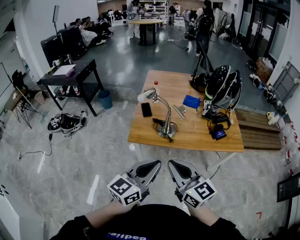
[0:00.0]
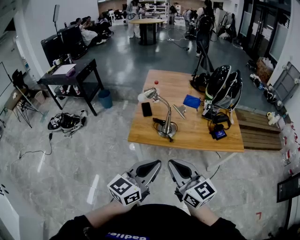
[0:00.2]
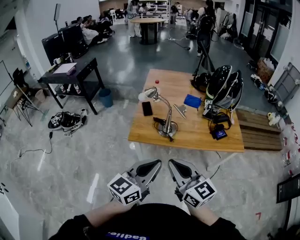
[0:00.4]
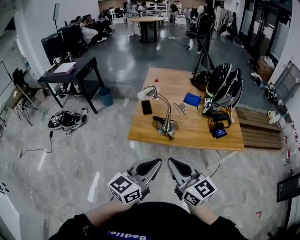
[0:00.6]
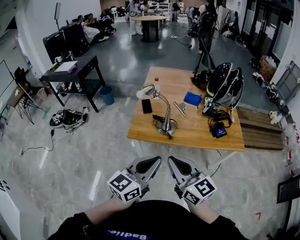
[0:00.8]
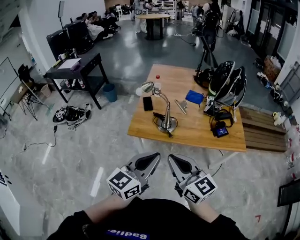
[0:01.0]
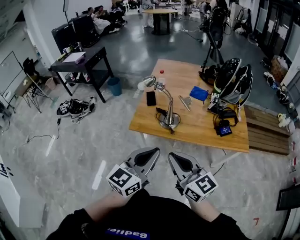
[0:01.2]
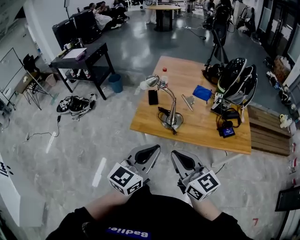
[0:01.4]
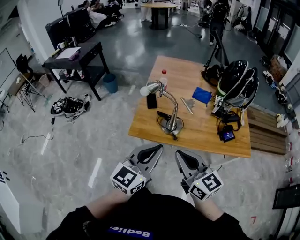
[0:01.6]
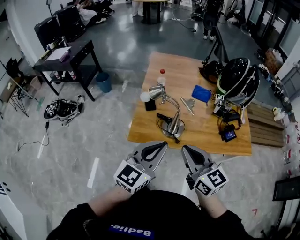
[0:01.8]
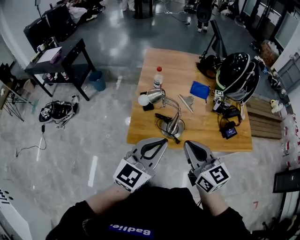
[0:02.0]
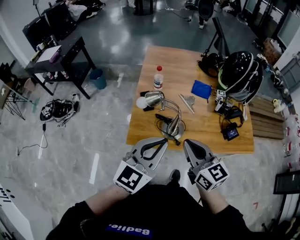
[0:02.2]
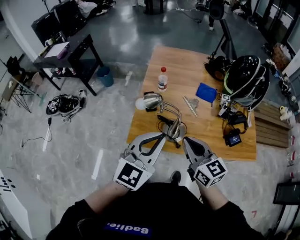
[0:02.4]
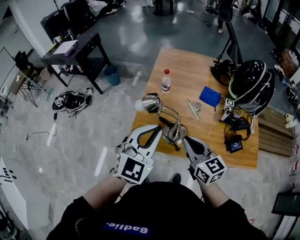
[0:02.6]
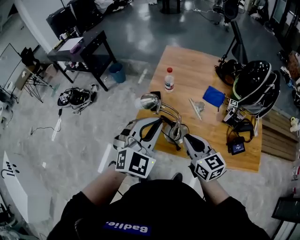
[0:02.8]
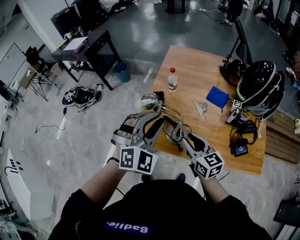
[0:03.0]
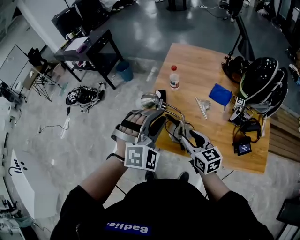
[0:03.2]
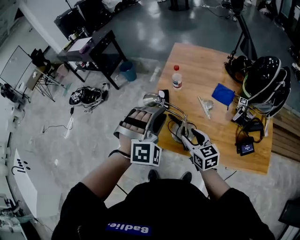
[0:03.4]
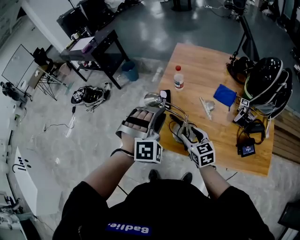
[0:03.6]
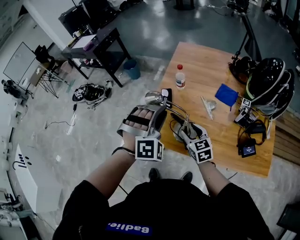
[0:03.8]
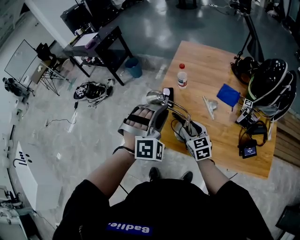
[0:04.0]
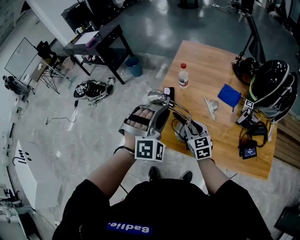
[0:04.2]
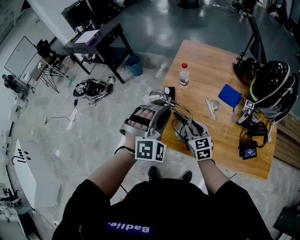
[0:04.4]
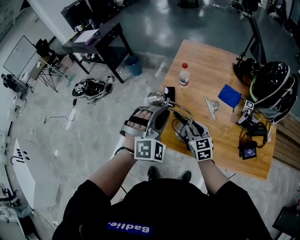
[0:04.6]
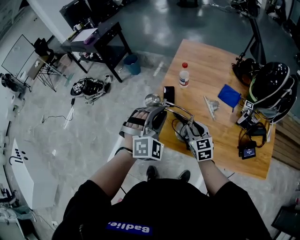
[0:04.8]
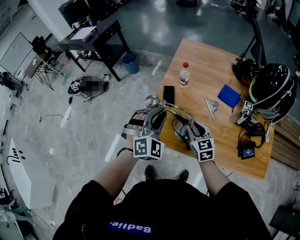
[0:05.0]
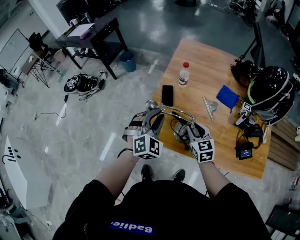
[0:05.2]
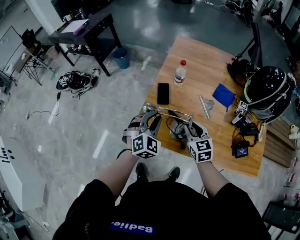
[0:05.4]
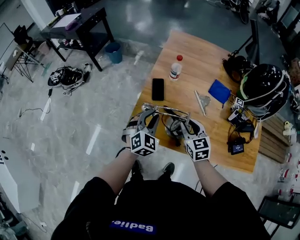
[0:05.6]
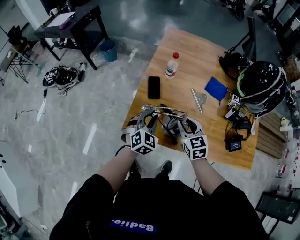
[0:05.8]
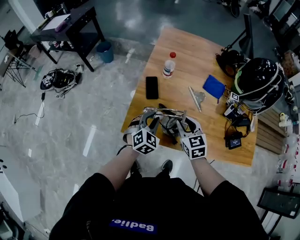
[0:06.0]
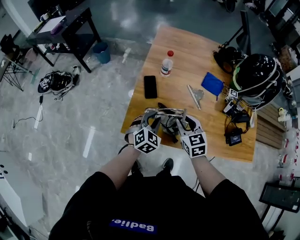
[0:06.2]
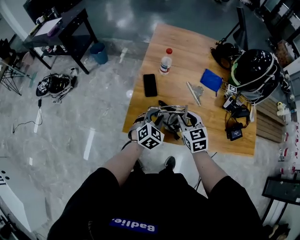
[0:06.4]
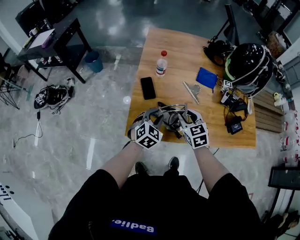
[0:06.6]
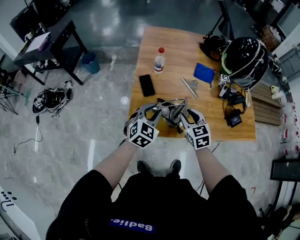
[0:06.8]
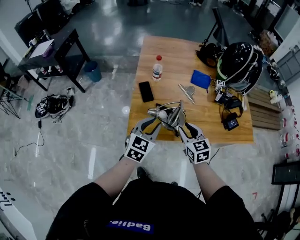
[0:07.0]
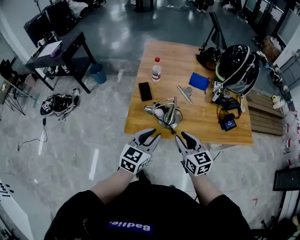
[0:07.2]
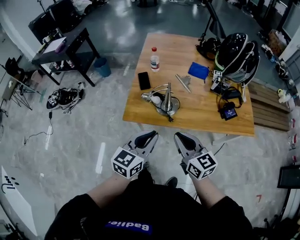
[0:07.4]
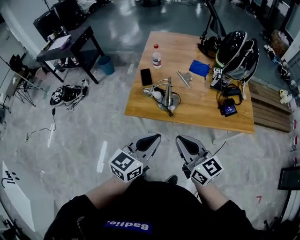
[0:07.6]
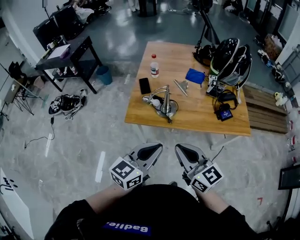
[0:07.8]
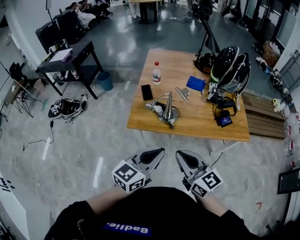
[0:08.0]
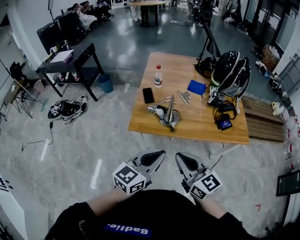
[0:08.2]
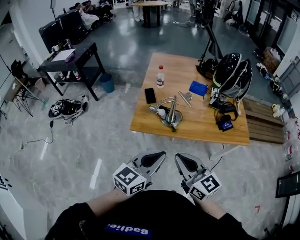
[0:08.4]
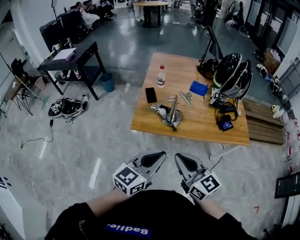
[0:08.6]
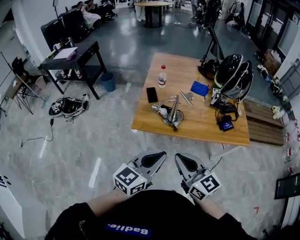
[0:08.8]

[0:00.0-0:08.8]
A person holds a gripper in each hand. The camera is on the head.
0:00.0 to 0:01.4: The right gripper ends up about 5 cm from where it was. Meanwhile the left gripper shifts about 5 cm forward.
0:01.4 to 0:03.0: The left gripper heads forward, covering about 30 cm, rolls clockwise, seen from behind, by approximately 60 degrees, and opens, while the right gripper is displaced forward and downward by some 30 cm, and opens up.
0:03.0 to 0:04.4: The left gripper shifts by about 5 cm; the right gripper goes roughly 15 cm downward and forward.
0:04.4 to 0:05.8: The left gripper is displaced downward by some 20 cm, and twists approximately 40 degrees counterclockwise, seen from behind.
0:05.8 to 0:07.4: The grippers both shift backward and upward by about 30 cm. The left gripper swivels about 40 degrees. Meanwhile the right gripper swivels some 30 degrees, and closes up.
0:07.4 to 0:08.8: Both grippers move backward and upward, some 15 cm.

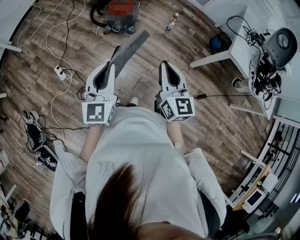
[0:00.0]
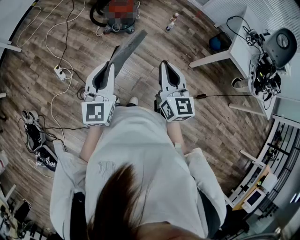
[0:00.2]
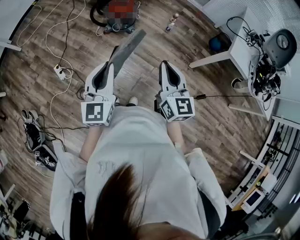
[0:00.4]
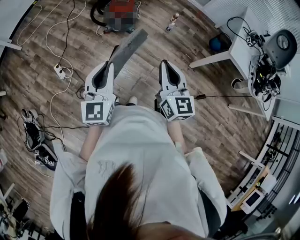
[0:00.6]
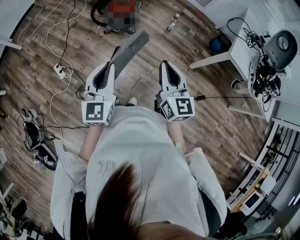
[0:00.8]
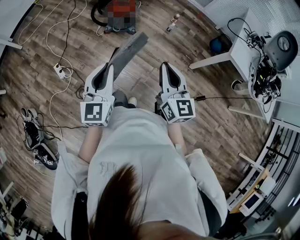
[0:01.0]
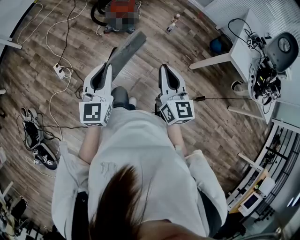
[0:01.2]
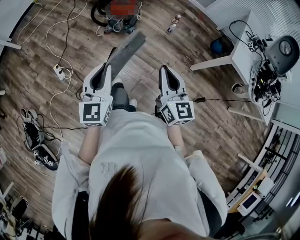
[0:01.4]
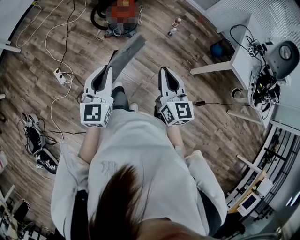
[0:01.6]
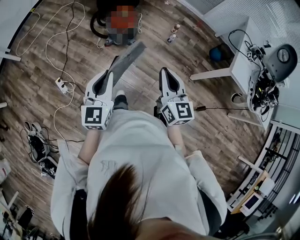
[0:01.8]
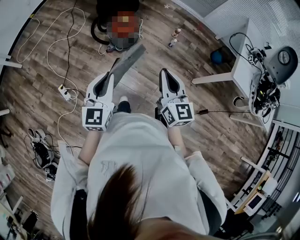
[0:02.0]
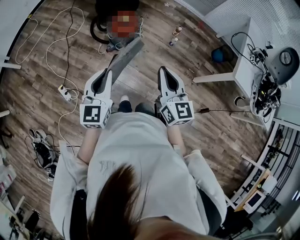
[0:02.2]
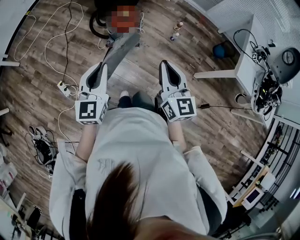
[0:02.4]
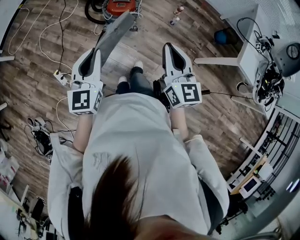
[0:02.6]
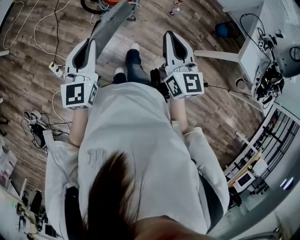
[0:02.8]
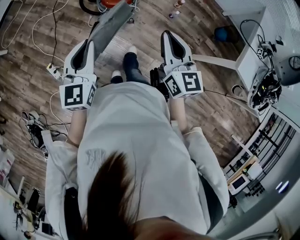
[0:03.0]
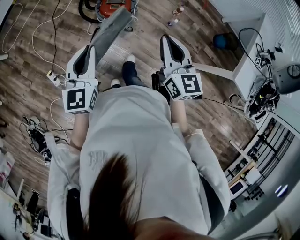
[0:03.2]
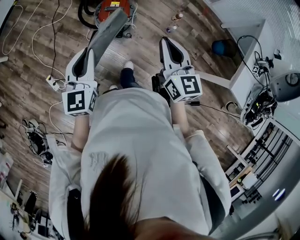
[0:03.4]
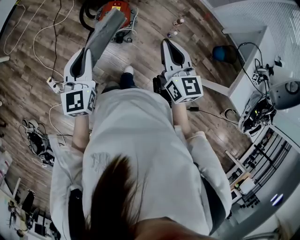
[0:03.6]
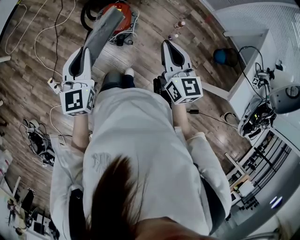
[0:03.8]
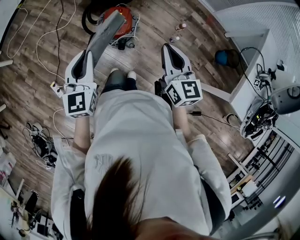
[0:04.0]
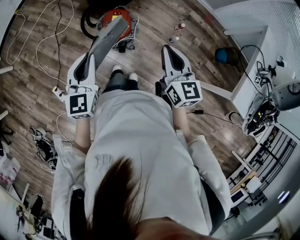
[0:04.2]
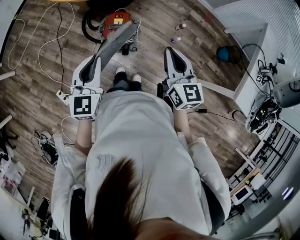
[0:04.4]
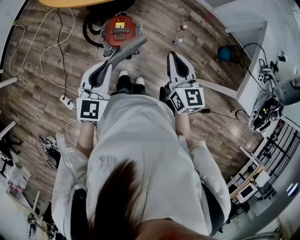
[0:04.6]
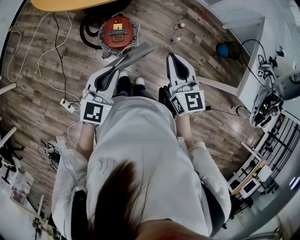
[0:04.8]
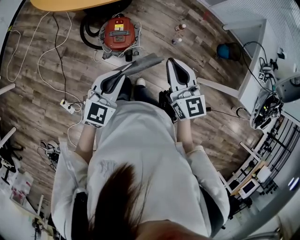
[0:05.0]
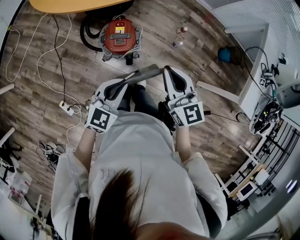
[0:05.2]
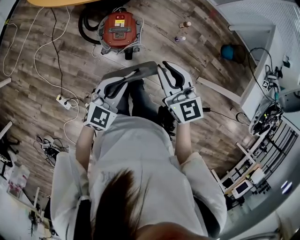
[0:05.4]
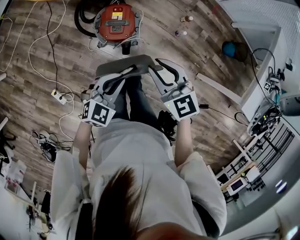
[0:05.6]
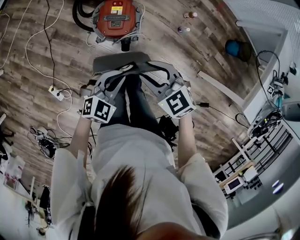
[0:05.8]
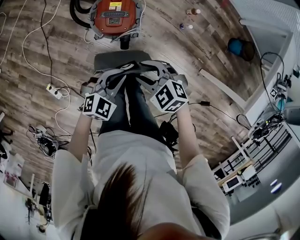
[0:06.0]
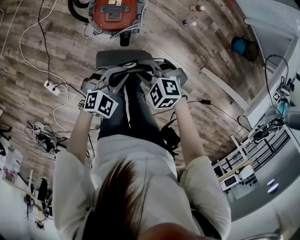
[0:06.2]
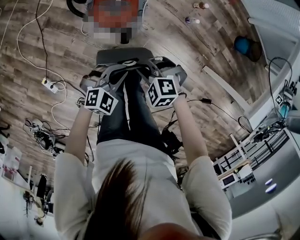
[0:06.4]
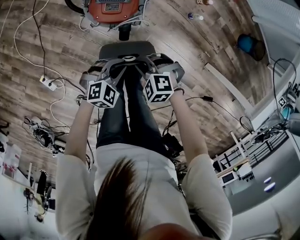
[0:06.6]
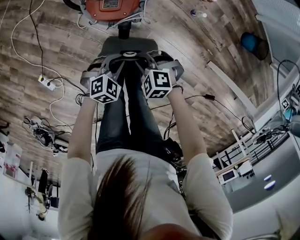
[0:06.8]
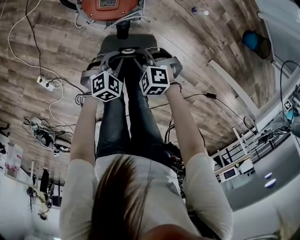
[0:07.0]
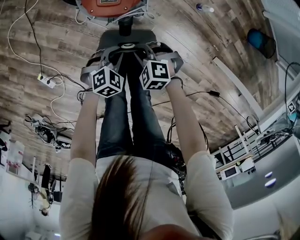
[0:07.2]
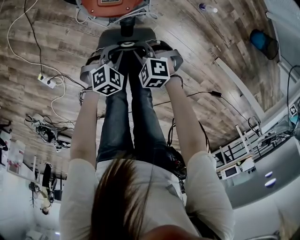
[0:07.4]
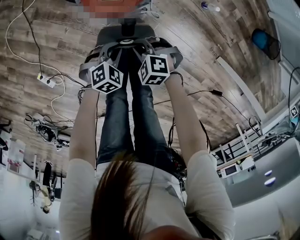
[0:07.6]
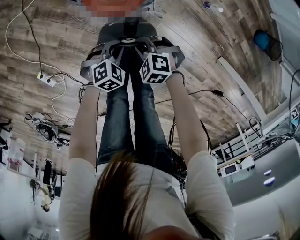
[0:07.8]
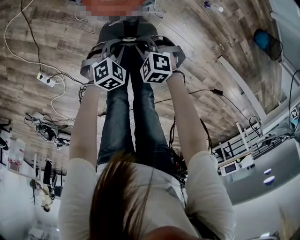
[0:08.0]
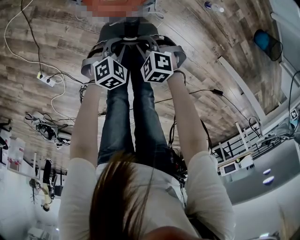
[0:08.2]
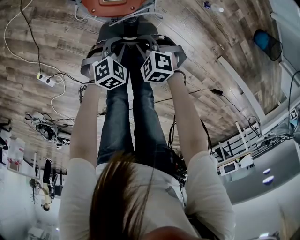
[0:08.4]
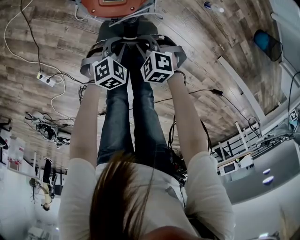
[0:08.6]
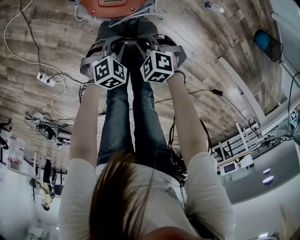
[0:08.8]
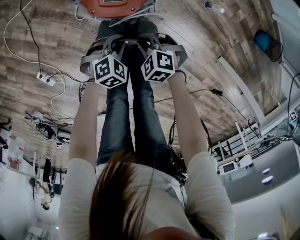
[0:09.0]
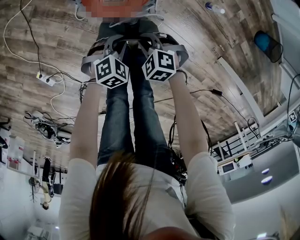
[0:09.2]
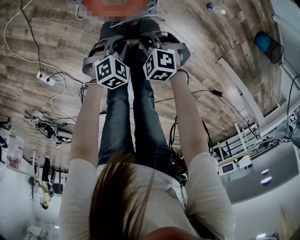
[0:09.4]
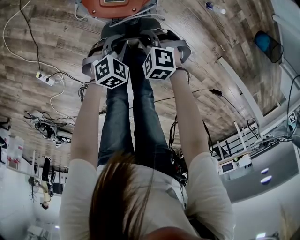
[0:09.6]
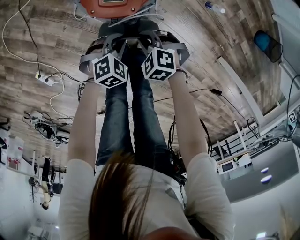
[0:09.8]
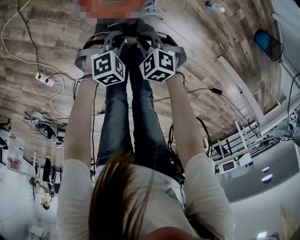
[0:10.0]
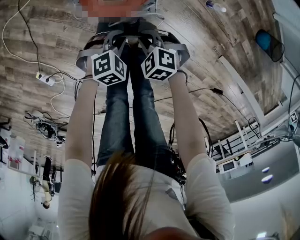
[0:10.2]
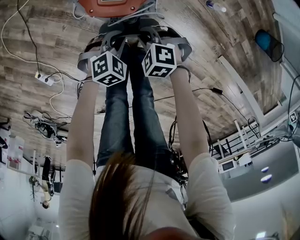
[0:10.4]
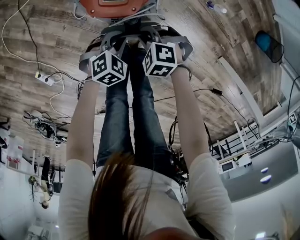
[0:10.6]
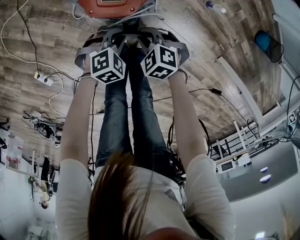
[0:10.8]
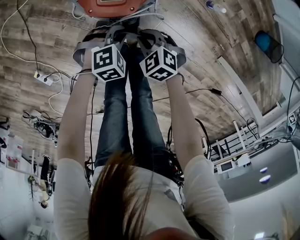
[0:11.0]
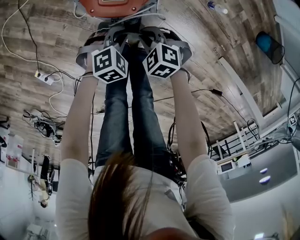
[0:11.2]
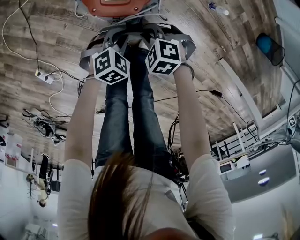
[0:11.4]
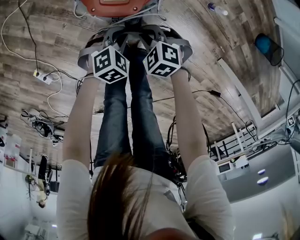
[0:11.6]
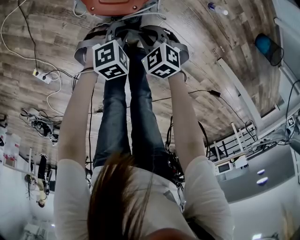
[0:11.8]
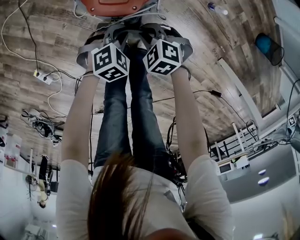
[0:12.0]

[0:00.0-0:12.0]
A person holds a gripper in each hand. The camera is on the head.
0:00.0 to 0:01.6: The two grippers go approximately 5 cm forward.
0:01.6 to 0:03.0: Both grippers move forward, about 25 cm.
0:03.0 to 0:04.4: The two grippers go approximately 20 cm forward.
0:04.4 to 0:06.0: Both grippers travel together downward, roughly 25 cm. The right gripper points its fingers some 40 degrees further downward, and opens its fingers; the left gripper swivels about 50 degrees.
0:06.0 to 0:07.6: The grippers both shift downward by about 30 cm. The left gripper swivels about 30 degrees. The right gripper closes up.
0:07.6 to 0:10.4: The grippers stay close to where they were, moving slightly.

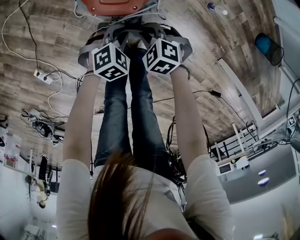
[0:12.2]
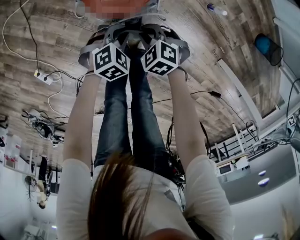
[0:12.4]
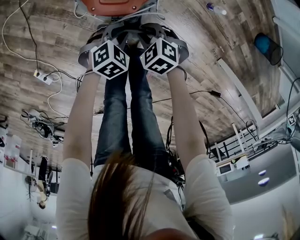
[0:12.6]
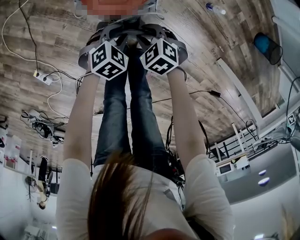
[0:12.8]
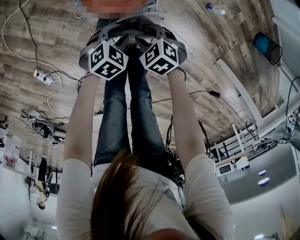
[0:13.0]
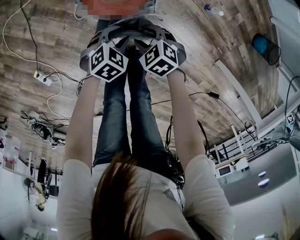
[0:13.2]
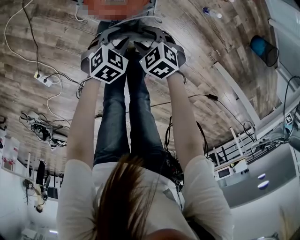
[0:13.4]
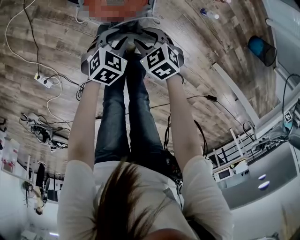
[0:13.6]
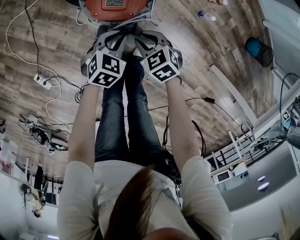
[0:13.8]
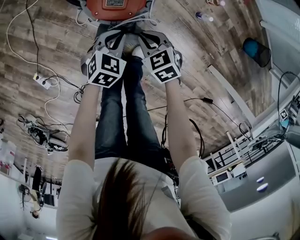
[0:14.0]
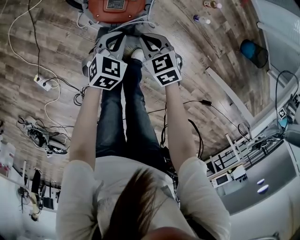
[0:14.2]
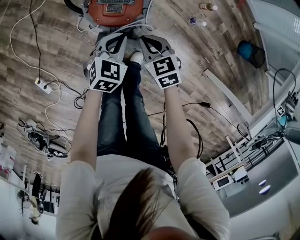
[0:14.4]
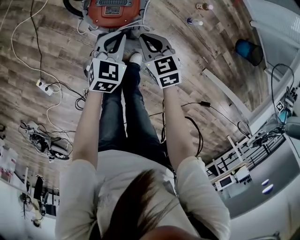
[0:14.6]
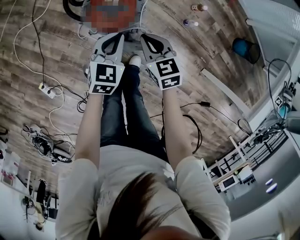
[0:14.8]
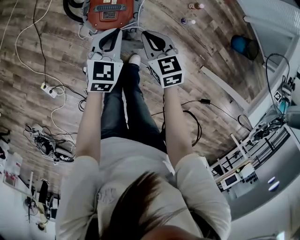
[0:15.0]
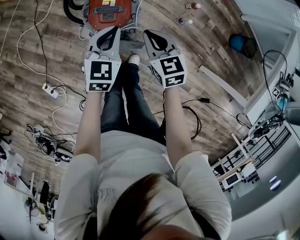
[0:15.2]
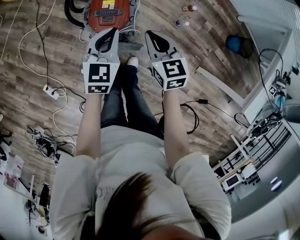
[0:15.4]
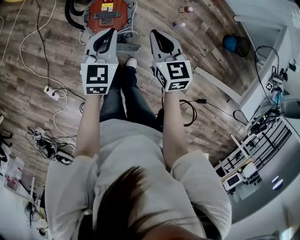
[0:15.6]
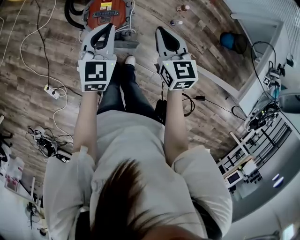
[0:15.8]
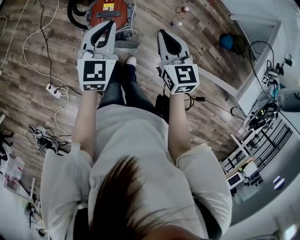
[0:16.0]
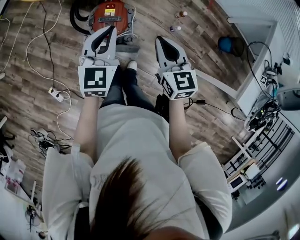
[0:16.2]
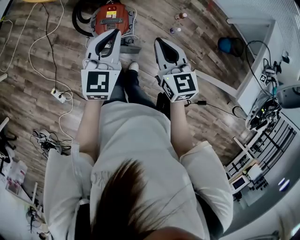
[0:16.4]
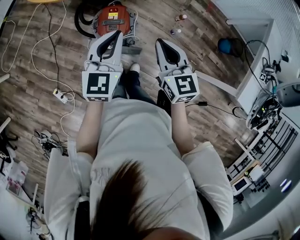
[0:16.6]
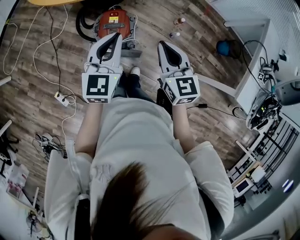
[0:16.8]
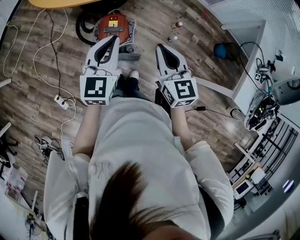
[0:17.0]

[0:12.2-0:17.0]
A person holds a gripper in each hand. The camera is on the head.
0:12.2 to 0:13.8: Both grippers travel together upward, roughly 5 cm. The right gripper swivels approximately 20 degrees, and opens, then closes once more. Meanwhile the left gripper swivels some 20 degrees, and opens and closes again.
0:13.8 to 0:15.4: The grippers both shift upward by roughly 25 cm. The right gripper turns by some 40 degrees, and closes, while the left gripper swivels approximately 30 degrees.
0:15.4 to 0:17.0: The grippers both shift upward by about 25 cm.
